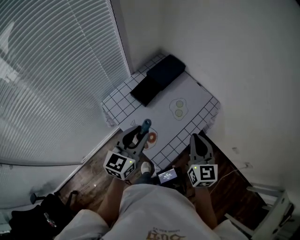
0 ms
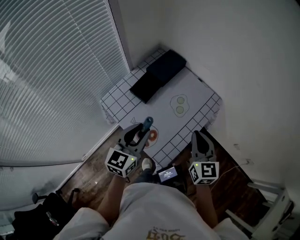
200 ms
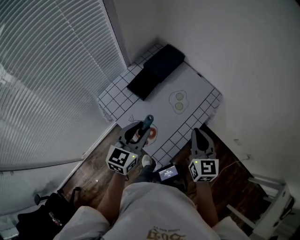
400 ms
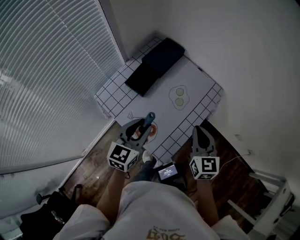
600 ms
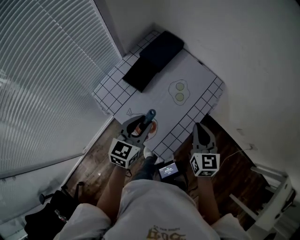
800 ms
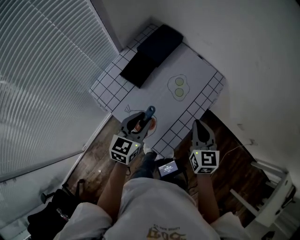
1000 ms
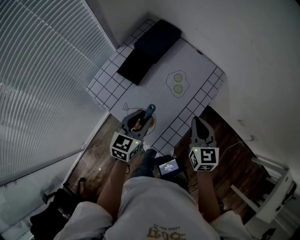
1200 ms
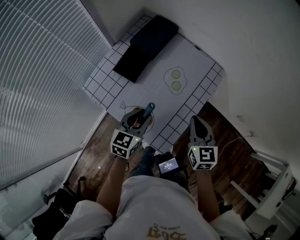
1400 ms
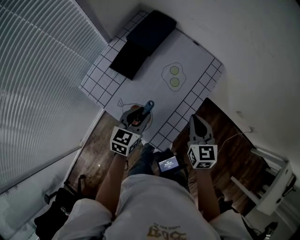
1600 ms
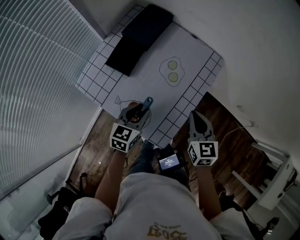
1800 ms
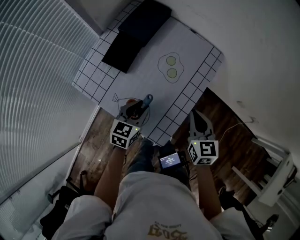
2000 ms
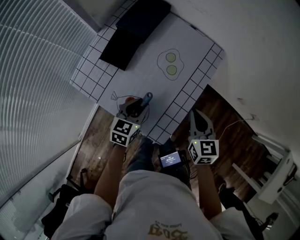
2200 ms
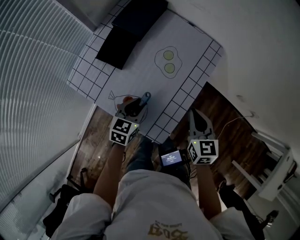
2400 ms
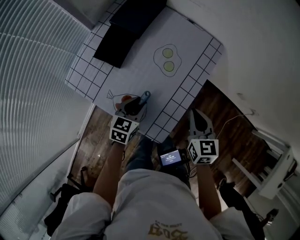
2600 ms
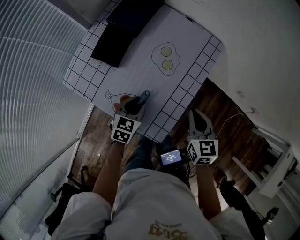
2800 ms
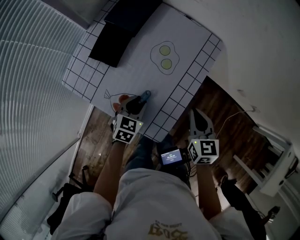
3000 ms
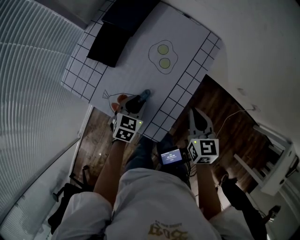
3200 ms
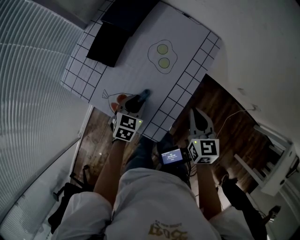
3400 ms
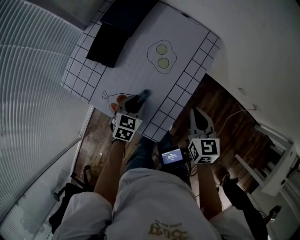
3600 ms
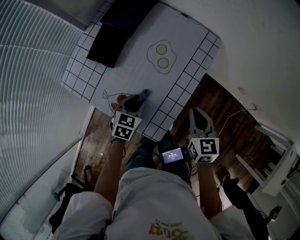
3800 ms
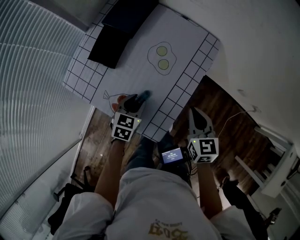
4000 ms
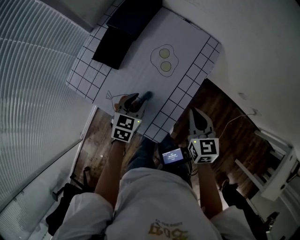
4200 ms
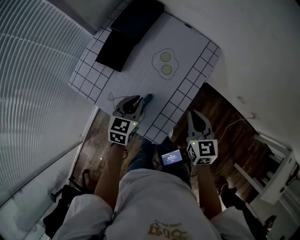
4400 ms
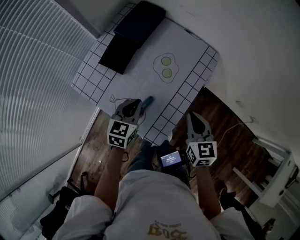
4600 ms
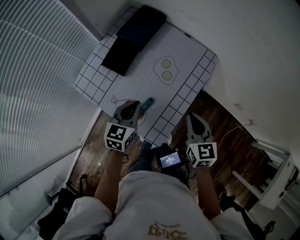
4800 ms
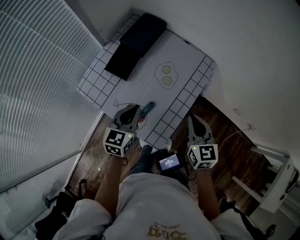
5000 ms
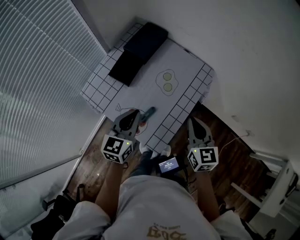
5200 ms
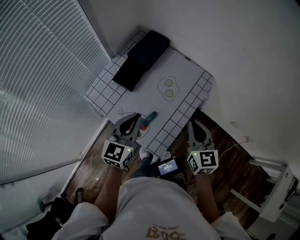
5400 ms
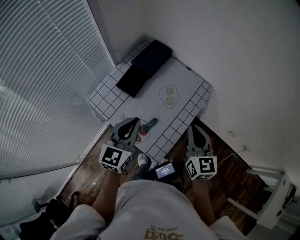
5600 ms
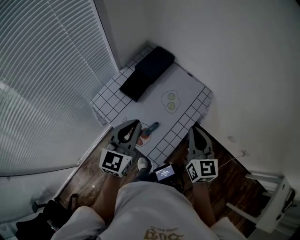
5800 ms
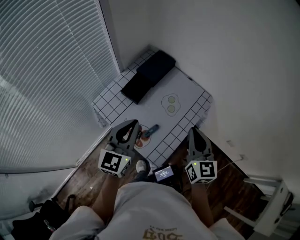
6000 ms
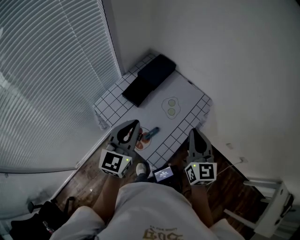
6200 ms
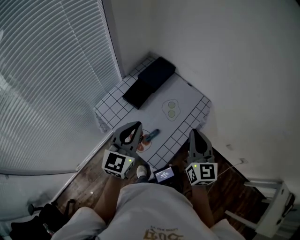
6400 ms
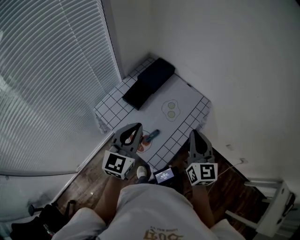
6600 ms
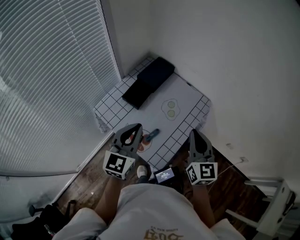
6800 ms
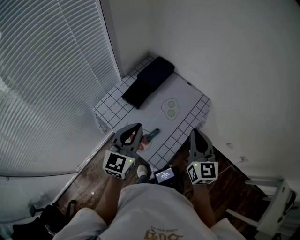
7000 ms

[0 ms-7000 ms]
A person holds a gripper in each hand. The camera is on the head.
0 ms to 1400 ms: Both grippers travel together downward, about 15 cm. The left gripper changes its angle by some 20 degrees.
1400 ms to 2800 ms: The right gripper goes some 5 cm downward. The left gripper goes approximately 10 cm downward.
2800 ms to 4200 ms: The grippers stay close to where they were, moving slightly.
4200 ms to 5600 ms: The right gripper is displaced upward by about 15 cm, and changes its angle by roughly 20 degrees. The left gripper goes about 25 cm upward, angles its fingers upward, by some 30 degrees, and closes.
5600 ms to 7000 ms: The right gripper heads upward, covering some 5 cm, while the left gripper ends up roughly 5 cm from where it was.

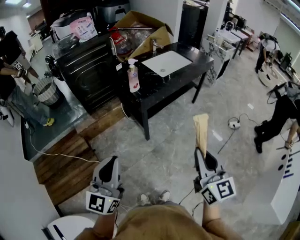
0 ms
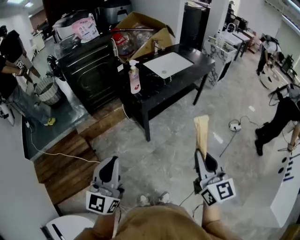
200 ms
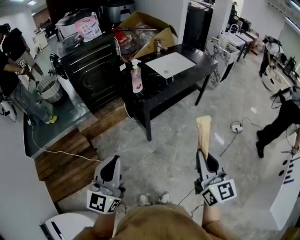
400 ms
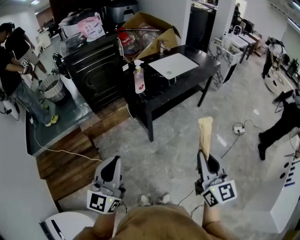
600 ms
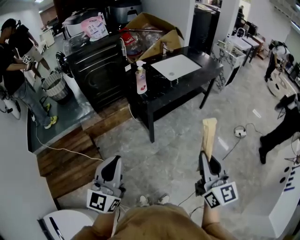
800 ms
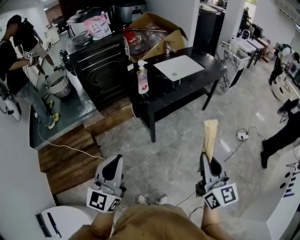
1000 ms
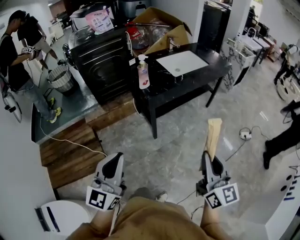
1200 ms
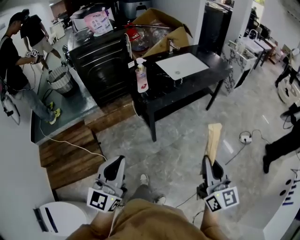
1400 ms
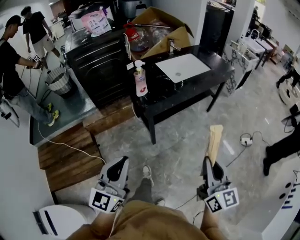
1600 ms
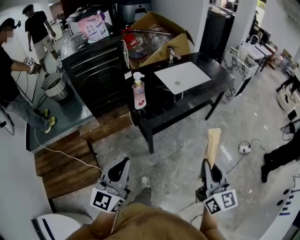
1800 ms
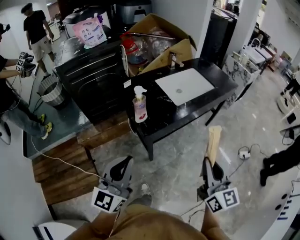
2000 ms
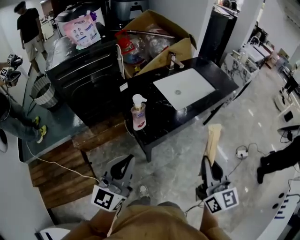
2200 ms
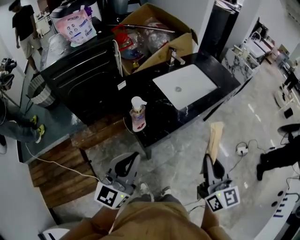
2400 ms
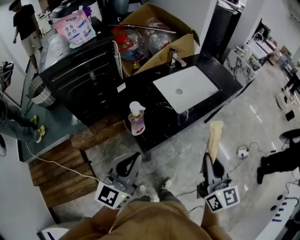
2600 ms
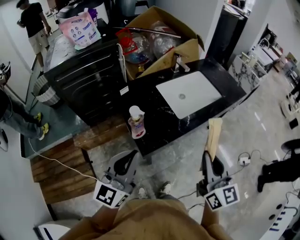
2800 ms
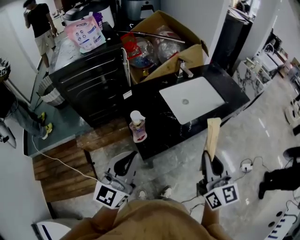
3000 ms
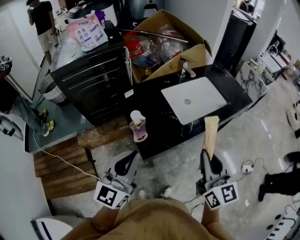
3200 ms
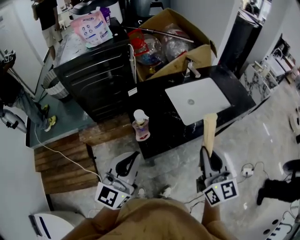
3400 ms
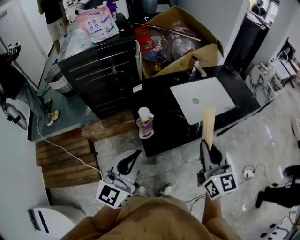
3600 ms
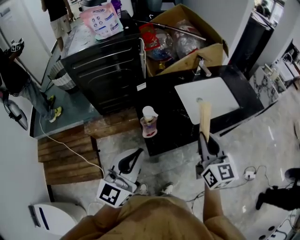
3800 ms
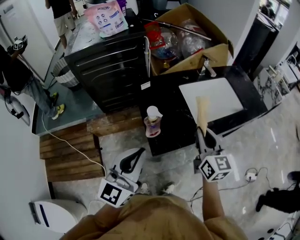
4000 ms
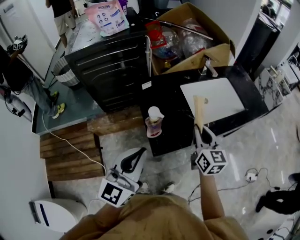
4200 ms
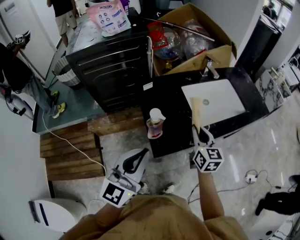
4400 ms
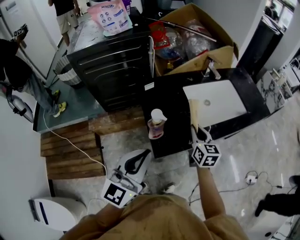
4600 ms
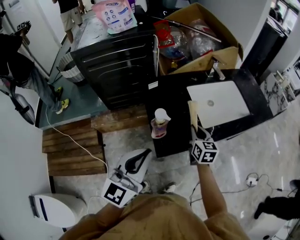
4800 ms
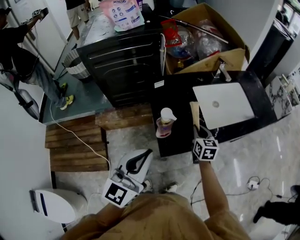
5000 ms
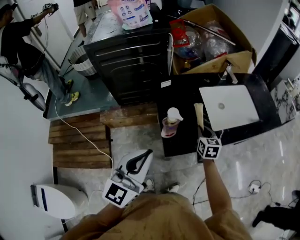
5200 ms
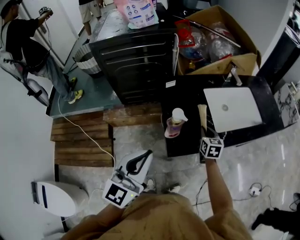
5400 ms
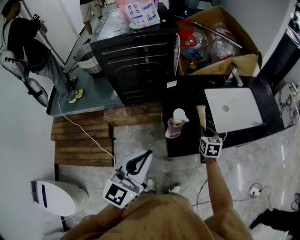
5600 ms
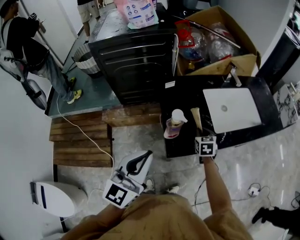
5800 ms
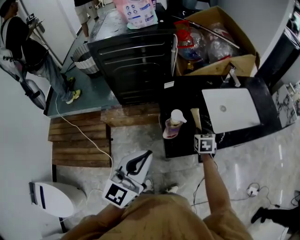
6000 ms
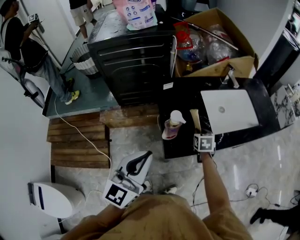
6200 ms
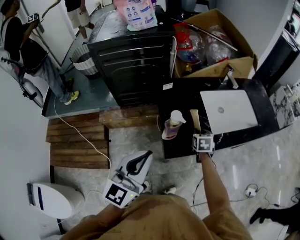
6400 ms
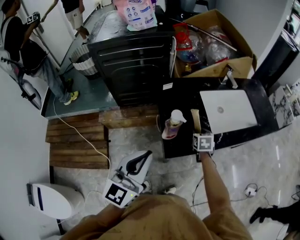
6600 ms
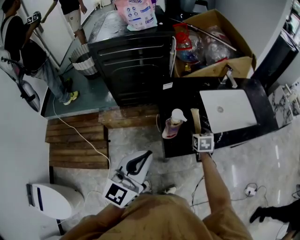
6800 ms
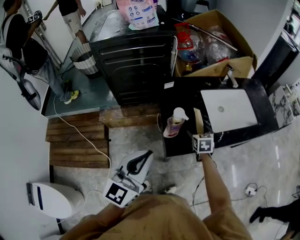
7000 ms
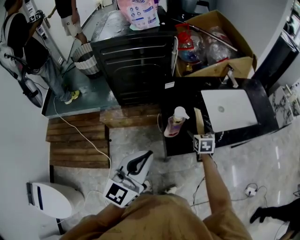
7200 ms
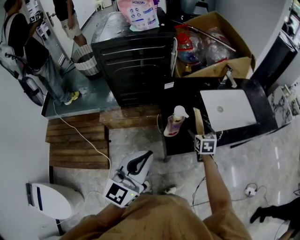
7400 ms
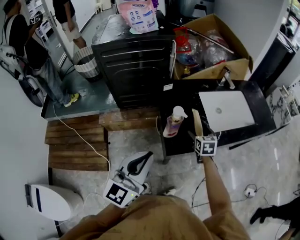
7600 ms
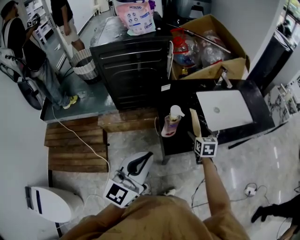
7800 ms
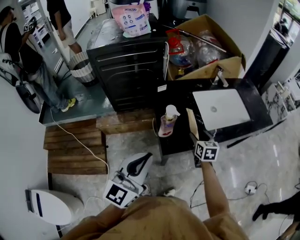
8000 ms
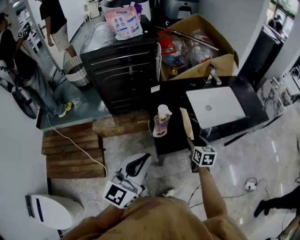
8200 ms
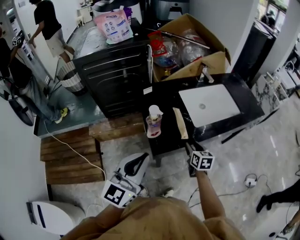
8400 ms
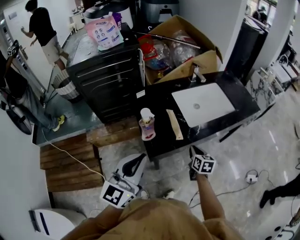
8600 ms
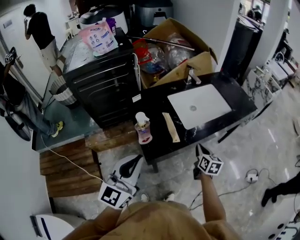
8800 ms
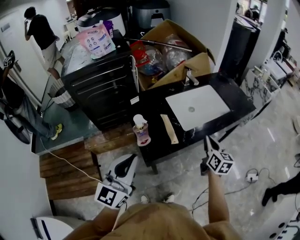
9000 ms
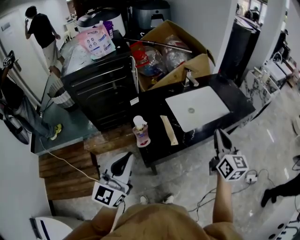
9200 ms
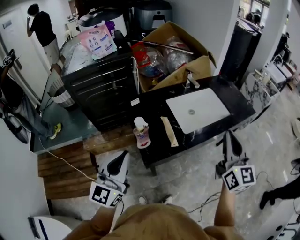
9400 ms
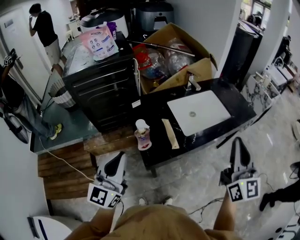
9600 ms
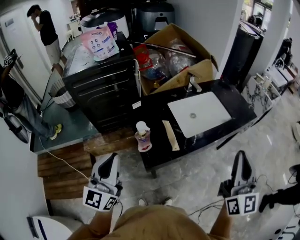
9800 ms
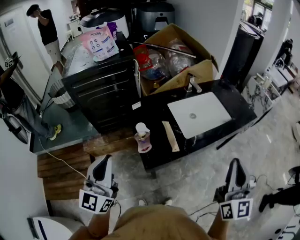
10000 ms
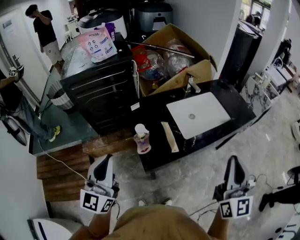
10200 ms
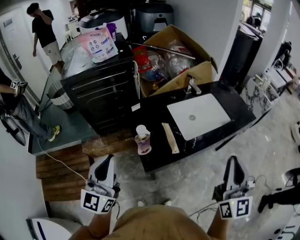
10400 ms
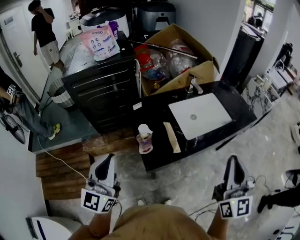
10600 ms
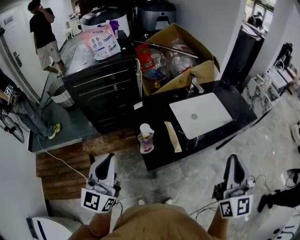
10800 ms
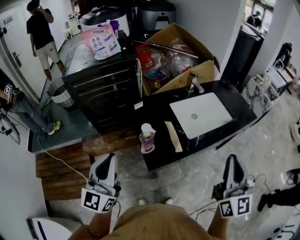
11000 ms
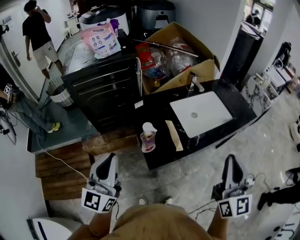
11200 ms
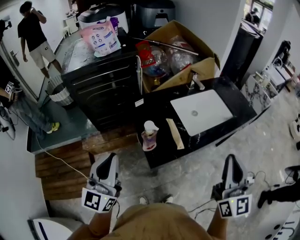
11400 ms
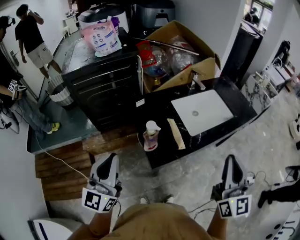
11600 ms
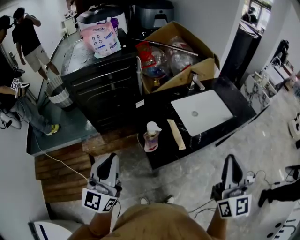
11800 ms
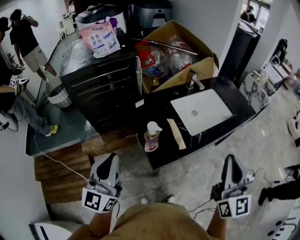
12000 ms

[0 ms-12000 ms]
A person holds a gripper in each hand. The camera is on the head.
0 ms to 1600 ms: The right gripper shifts some 15 cm forward and to the right; the left gripper shifts some 15 cm to the right and forward.
1600 ms to 3000 ms: Both grippers move forward, some 40 cm.
3000 ms to 4400 ms: The right gripper heads forward, downward and to the left, covering about 25 cm.
4400 ms to 6000 ms: The right gripper moves downward, approximately 15 cm, and tips its fingers downward by about 30 degrees.
6000 ms to 7600 ms: The right gripper opens.
7600 ms to 9000 ms: The right gripper shifts about 25 cm to the right and upward, rotates some 30 degrees, and closes its fingers. The left gripper goes approximately 5 cm to the right.
9000 ms to 10400 ms: The right gripper goes about 25 cm upward and backward, and turns by some 30 degrees, while the left gripper heads to the left, covering about 10 cm.
10400 ms to 12000 ms: The right gripper heads to the left, covering roughly 5 cm.

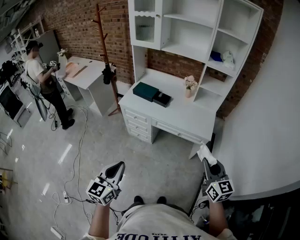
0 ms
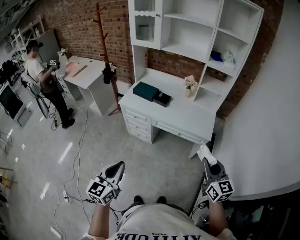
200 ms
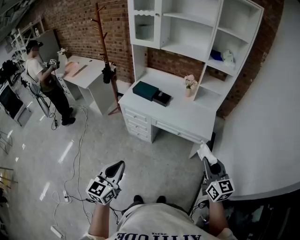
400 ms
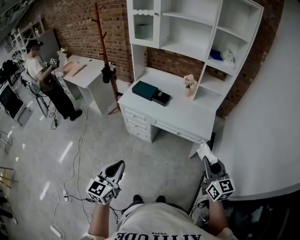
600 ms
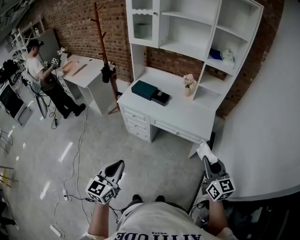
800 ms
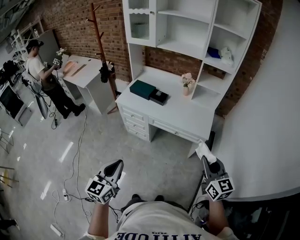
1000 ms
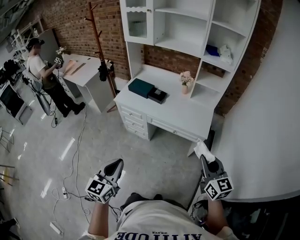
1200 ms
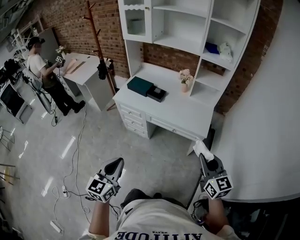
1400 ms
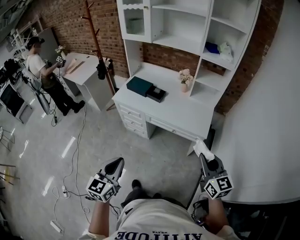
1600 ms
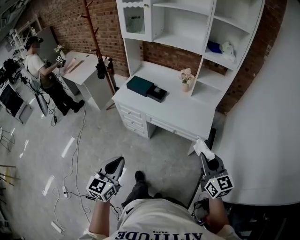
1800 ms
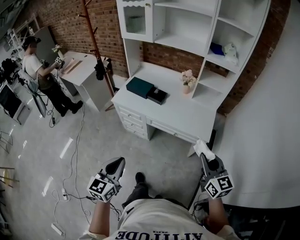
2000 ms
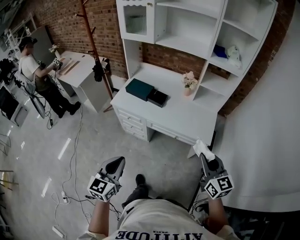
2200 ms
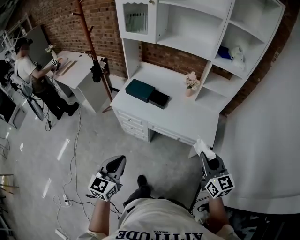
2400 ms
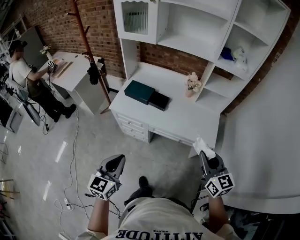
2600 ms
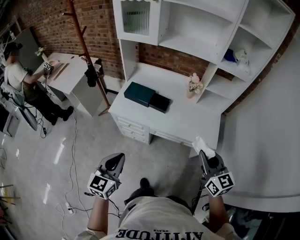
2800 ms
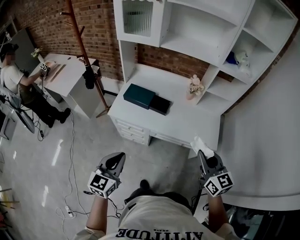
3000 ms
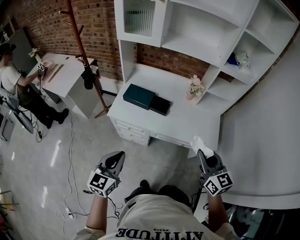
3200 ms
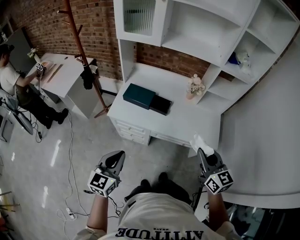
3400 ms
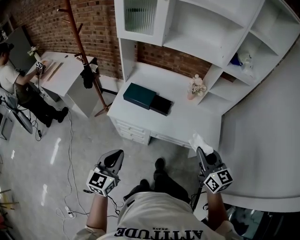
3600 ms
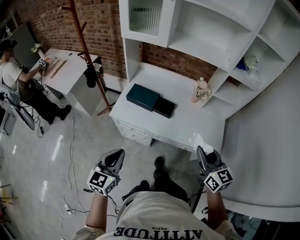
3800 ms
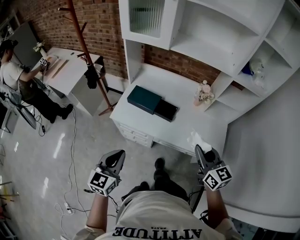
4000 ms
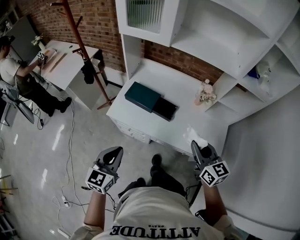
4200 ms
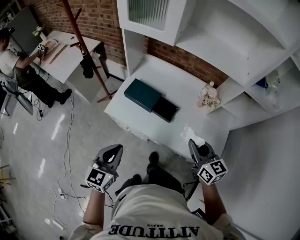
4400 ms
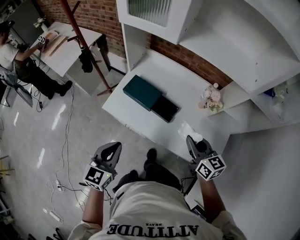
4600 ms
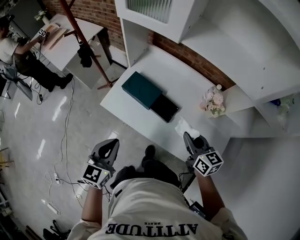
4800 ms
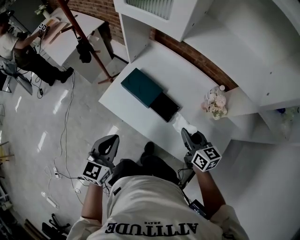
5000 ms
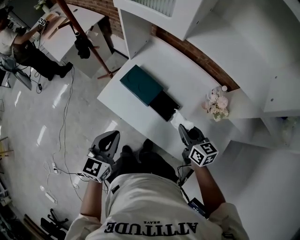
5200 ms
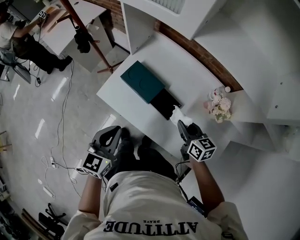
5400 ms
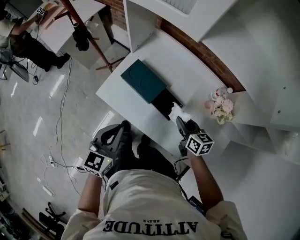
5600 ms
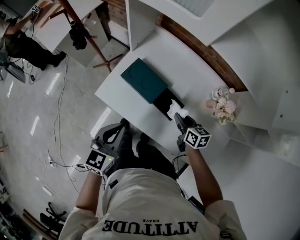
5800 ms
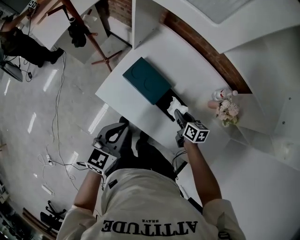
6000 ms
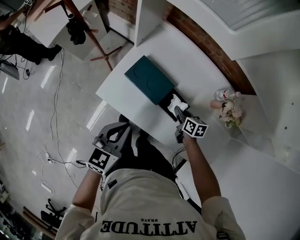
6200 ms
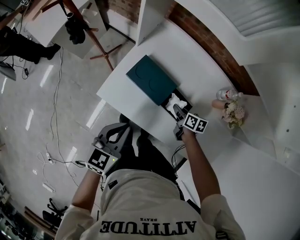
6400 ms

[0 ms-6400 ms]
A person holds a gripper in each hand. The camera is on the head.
0 ms to 1600 ms: Both grippers travel together to the right, roughly 5 cm.
1600 ms to 3200 ms: The two grippers go roughly 30 cm forward and to the left.
3200 ms to 4800 ms: The right gripper shifts roughly 35 cm forward and downward, and turns by approximately 30 degrees. The left gripper is displaced forward by about 20 cm.
4800 ms to 6400 ms: The right gripper moves downward and forward, about 30 cm, and swivels about 40 degrees; the left gripper heads forward and downward, covering roughly 15 cm.
